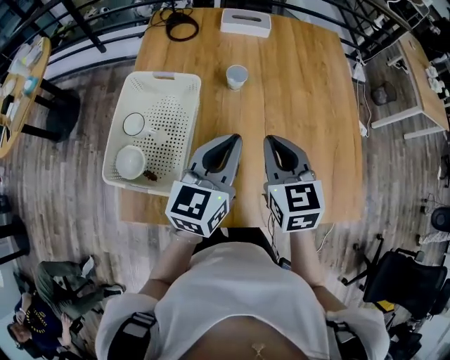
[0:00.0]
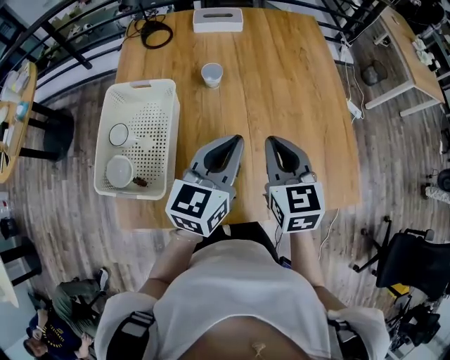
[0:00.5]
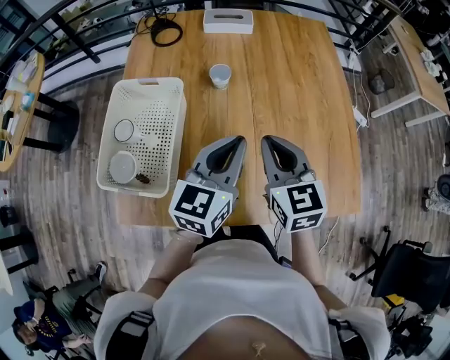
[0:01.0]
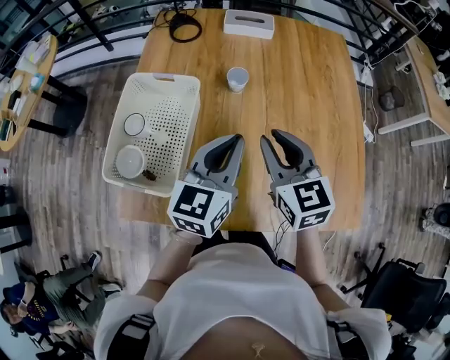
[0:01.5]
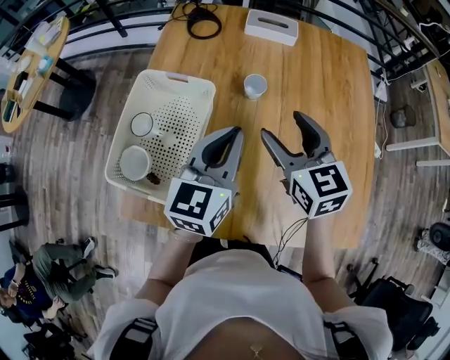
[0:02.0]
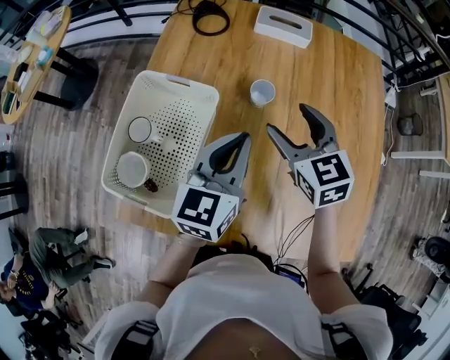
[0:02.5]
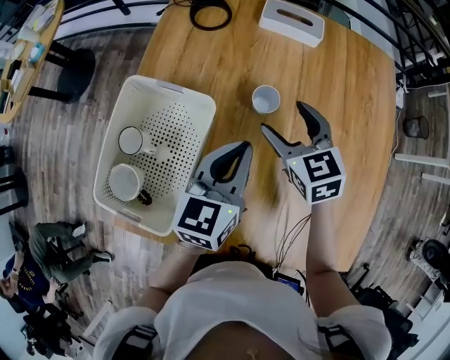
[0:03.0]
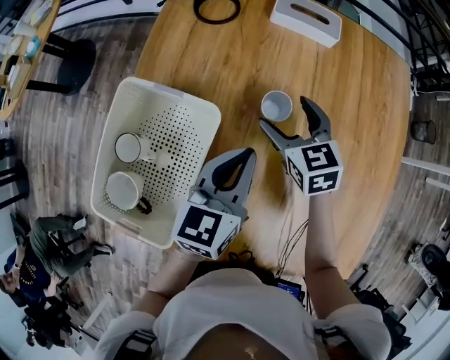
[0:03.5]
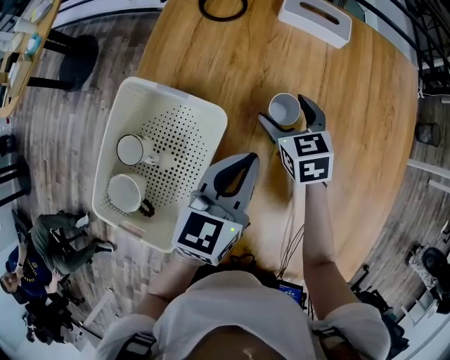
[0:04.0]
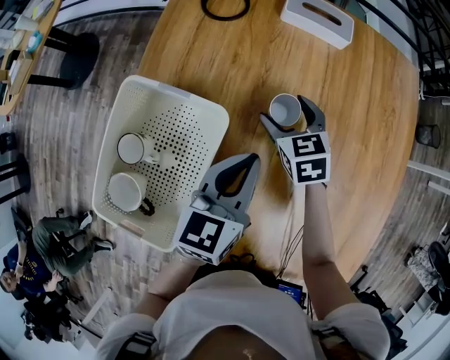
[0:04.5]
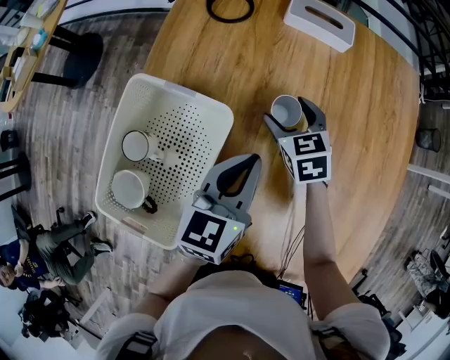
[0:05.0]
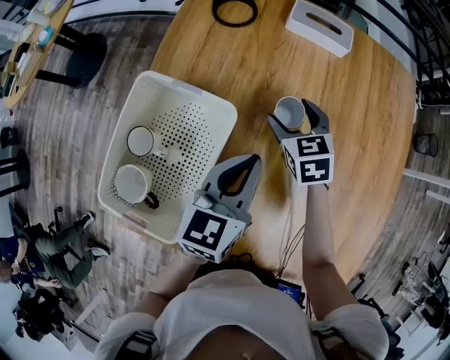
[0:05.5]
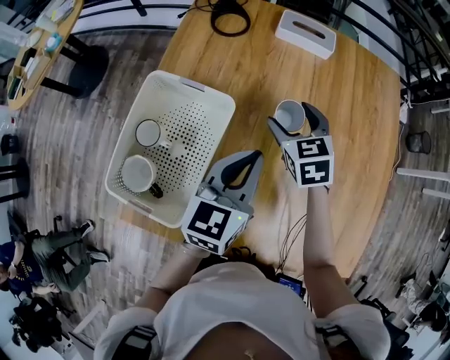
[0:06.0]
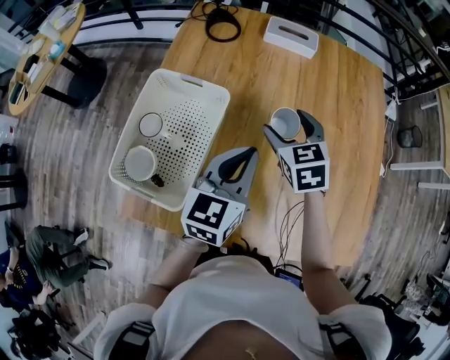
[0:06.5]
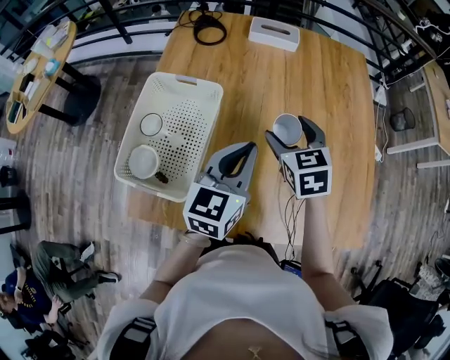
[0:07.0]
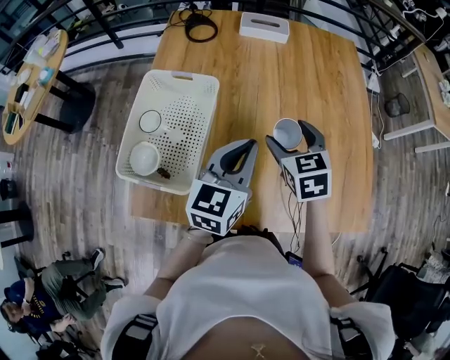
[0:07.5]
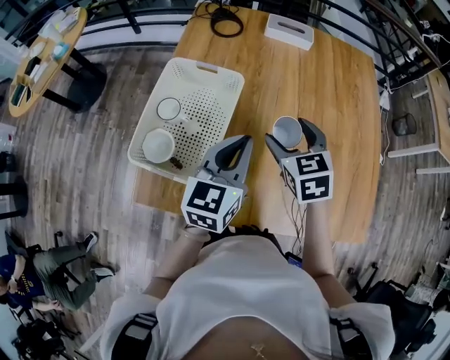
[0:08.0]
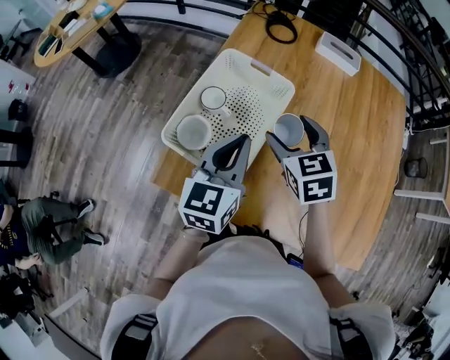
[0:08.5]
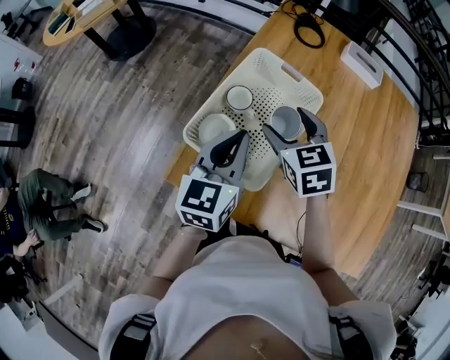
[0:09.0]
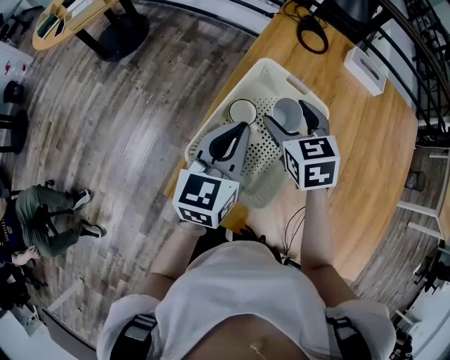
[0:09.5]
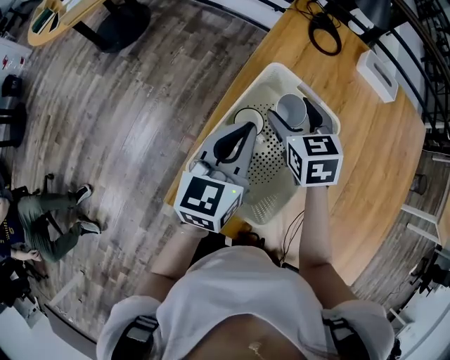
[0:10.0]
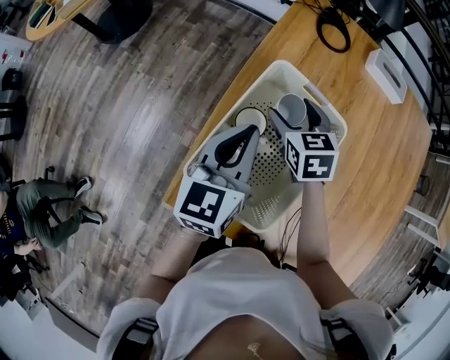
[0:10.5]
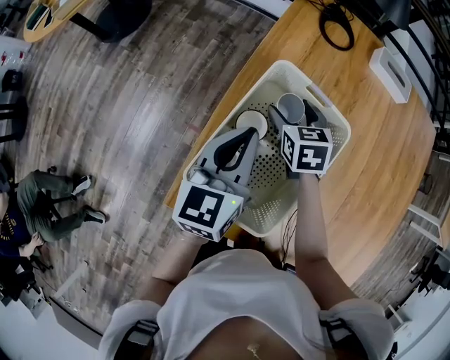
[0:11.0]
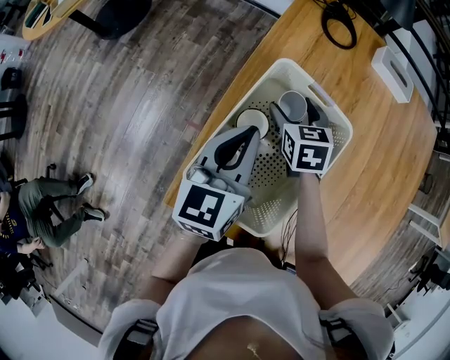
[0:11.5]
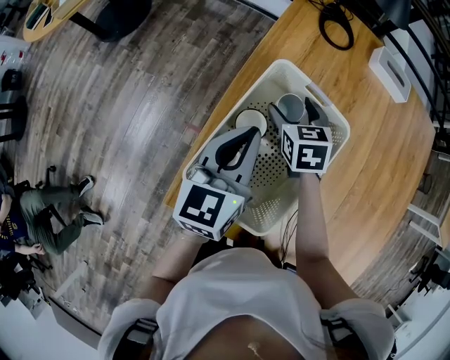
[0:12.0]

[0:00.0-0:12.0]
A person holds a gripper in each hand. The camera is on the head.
0:00.0 to 0:02.0: Both grippers move forward, about 10 cm. The left gripper travels to the right and back again, roughly 5 cm each way, while the right gripper opens up.
0:02.0 to 0:04.0: The right gripper heads downward and forward, covering approximately 25 cm; the left gripper heads downward and forward, covering about 15 cm.
0:04.0 to 0:06.0: The right gripper travels upward by roughly 10 cm; the left gripper moves roughly 5 cm.
0:06.0 to 0:08.0: The left gripper moves backward, approximately 10 cm. The right gripper shifts about 15 cm backward.
0:08.0 to 0:10.0: Both grippers travel together to the left and forward, some 25 cm.
0:10.0 to 0:12.0: The right gripper heads downward, covering approximately 10 cm.

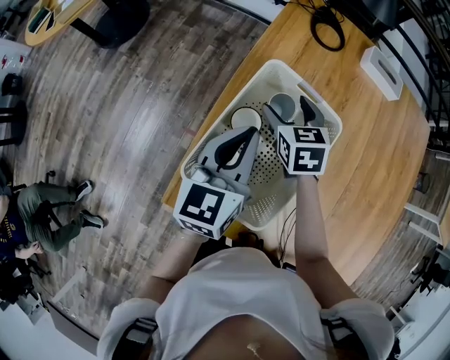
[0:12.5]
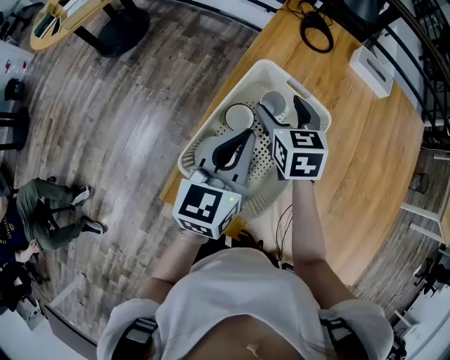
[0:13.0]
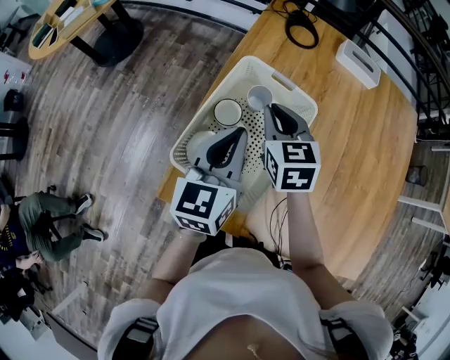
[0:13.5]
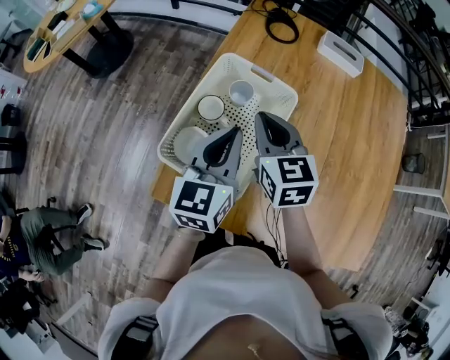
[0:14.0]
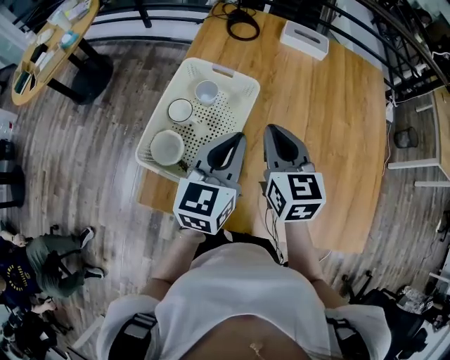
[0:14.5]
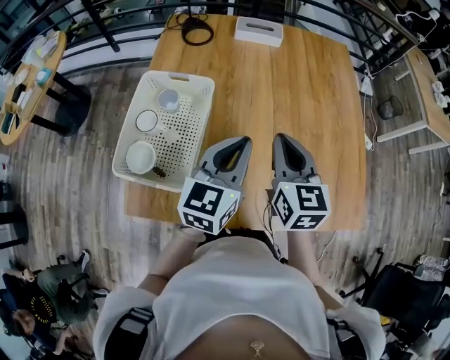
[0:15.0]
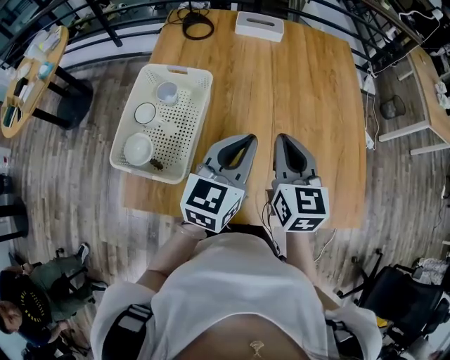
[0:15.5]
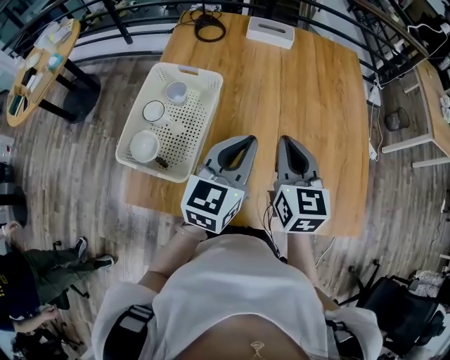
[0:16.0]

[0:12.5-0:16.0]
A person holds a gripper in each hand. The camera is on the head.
0:12.5 to 0:14.5: The left gripper moves to the right and backward, about 20 cm. Meanwhile the right gripper shifts about 25 cm backward, to the right and upward, changes its angle by about 30 degrees, and closes.
0:14.5 to 0:16.0: Both grippers move to the right, approximately 15 cm.

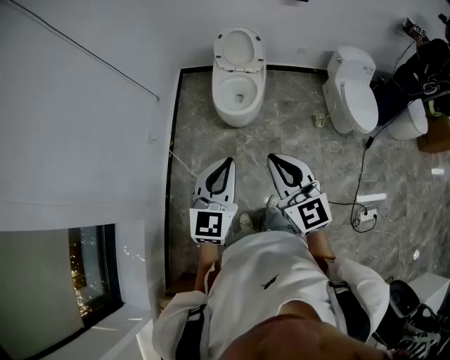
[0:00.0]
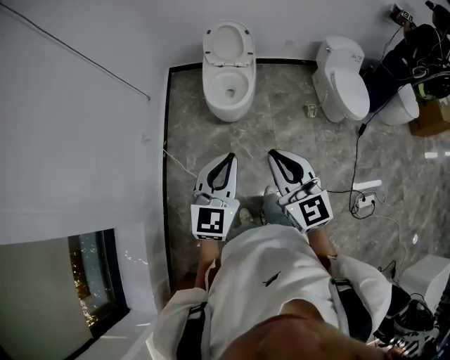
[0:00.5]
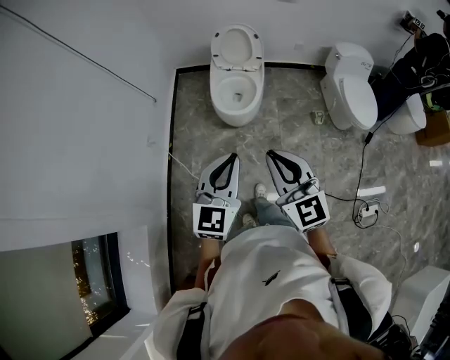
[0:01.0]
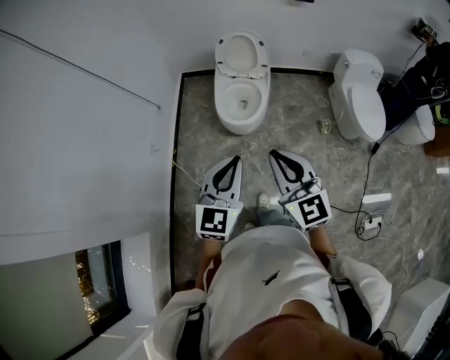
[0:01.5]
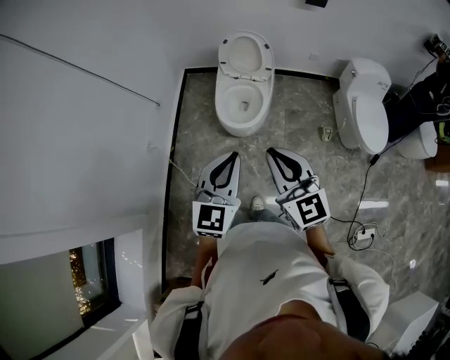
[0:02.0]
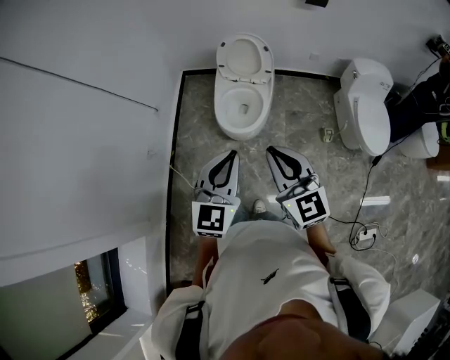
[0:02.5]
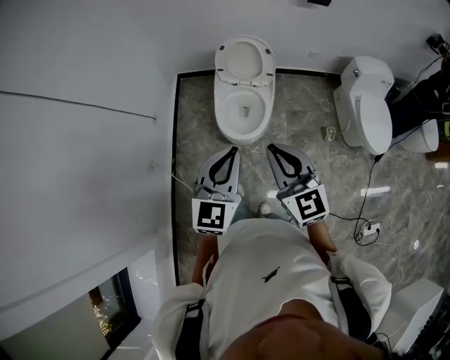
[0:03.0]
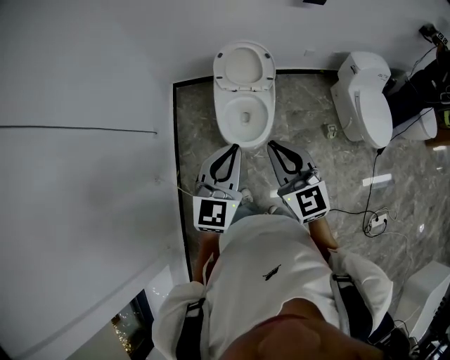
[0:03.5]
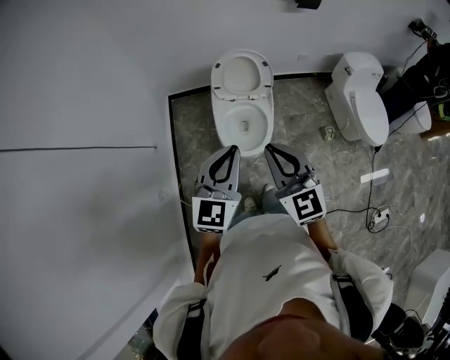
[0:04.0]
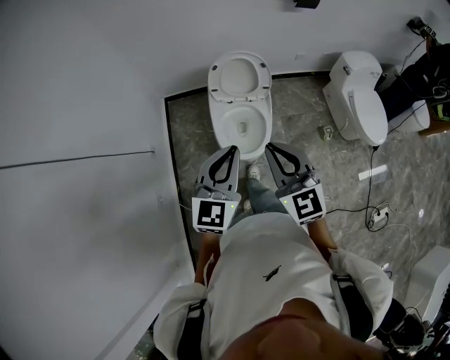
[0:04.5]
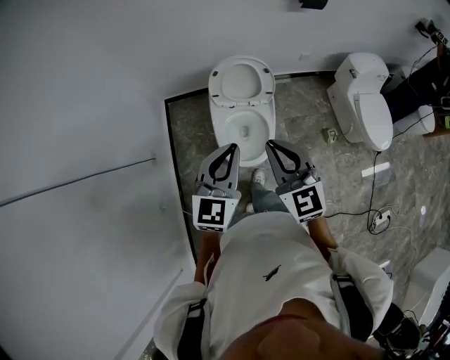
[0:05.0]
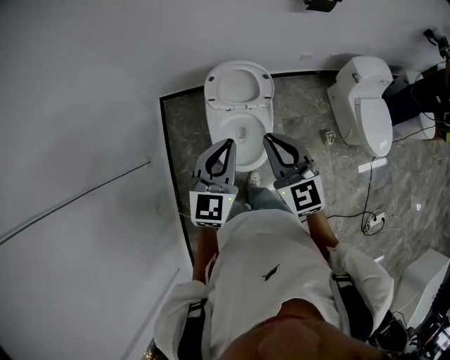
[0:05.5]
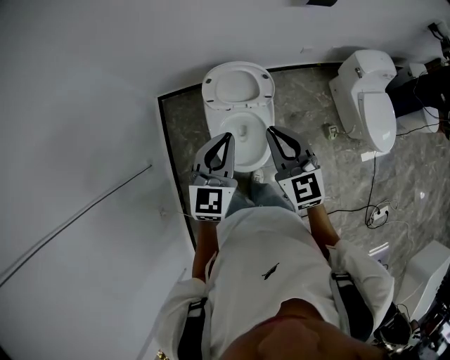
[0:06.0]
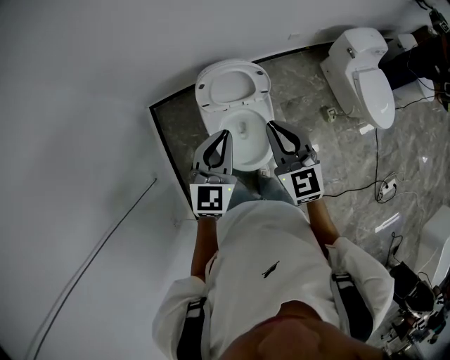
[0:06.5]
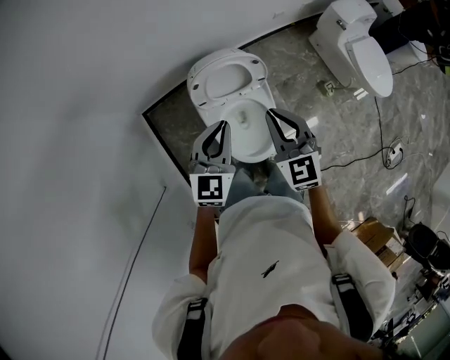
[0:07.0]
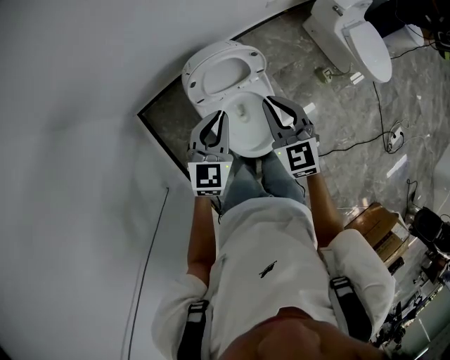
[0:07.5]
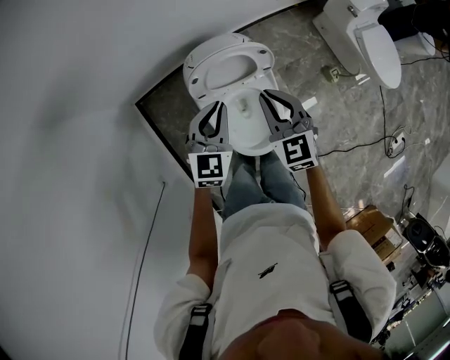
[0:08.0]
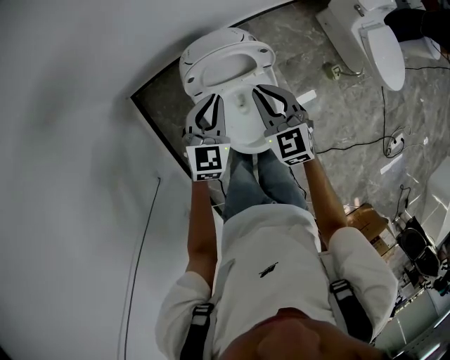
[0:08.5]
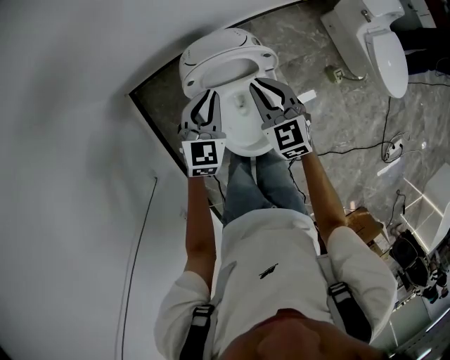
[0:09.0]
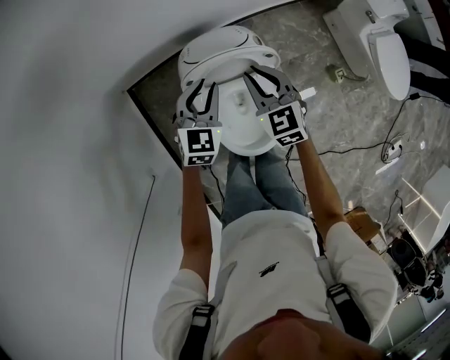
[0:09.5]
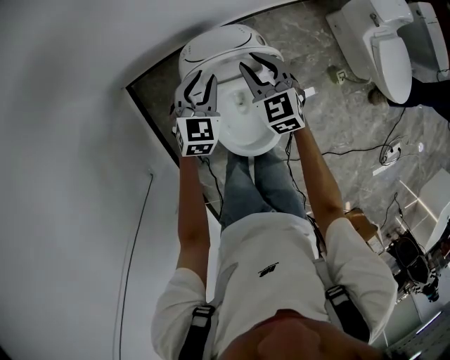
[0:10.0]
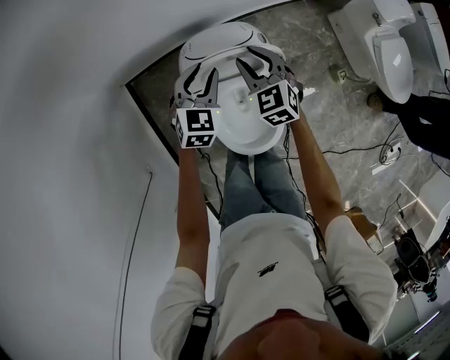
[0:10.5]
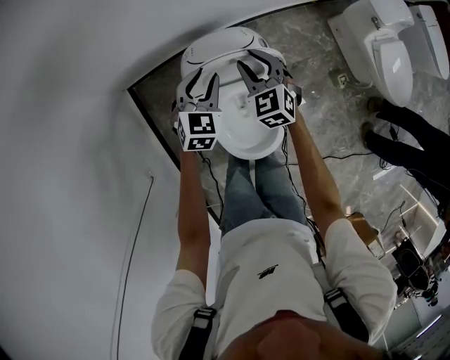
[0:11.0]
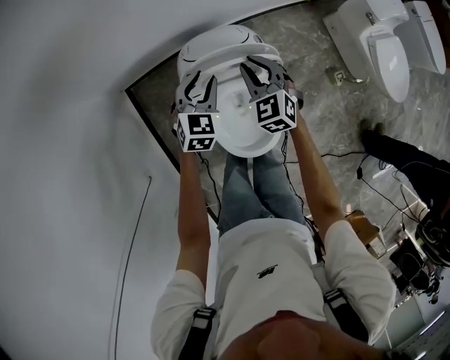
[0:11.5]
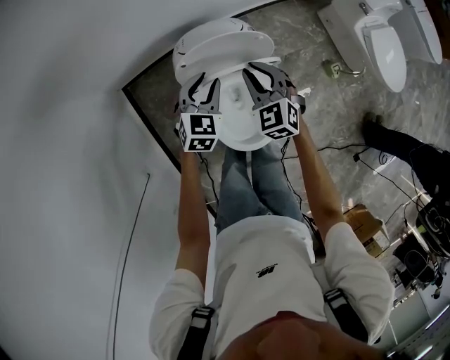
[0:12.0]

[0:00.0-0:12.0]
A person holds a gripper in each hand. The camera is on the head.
0:00.0 to 0:02.0: Both grippers travel together forward, some 15 cm.
0:02.0 to 0:04.0: Both grippers travel together forward and to the left, about 25 cm.
0:04.0 to 0:06.0: Both grippers move forward, about 25 cm.
0:06.0 to 0:08.0: The right gripper moves downward and forward, roughly 20 cm, and rotates approximately 20 degrees. The left gripper travels downward, forward and to the left by approximately 25 cm.
0:08.0 to 0:10.0: The two grippers go some 15 cm forward and downward. The left gripper opens its fingers.
0:10.0 to 0:12.0: The two grippers go some 5 cm backward.
